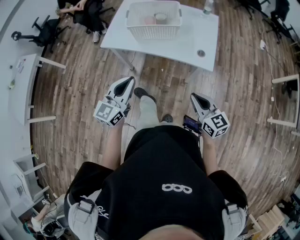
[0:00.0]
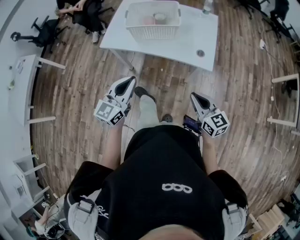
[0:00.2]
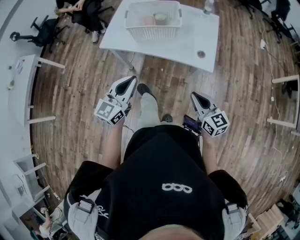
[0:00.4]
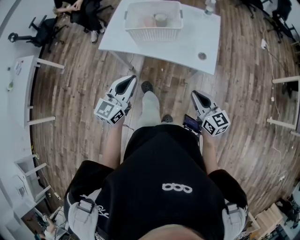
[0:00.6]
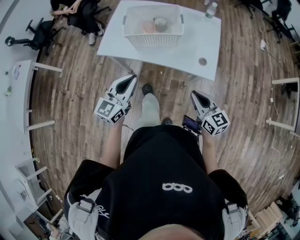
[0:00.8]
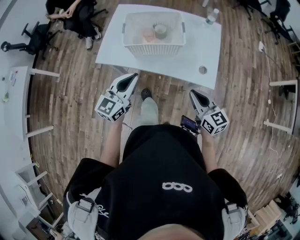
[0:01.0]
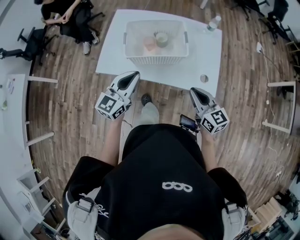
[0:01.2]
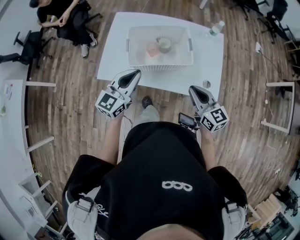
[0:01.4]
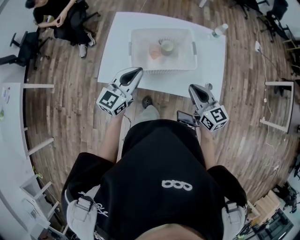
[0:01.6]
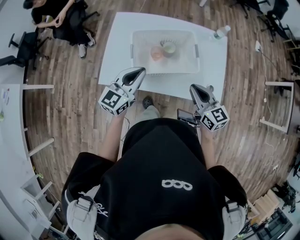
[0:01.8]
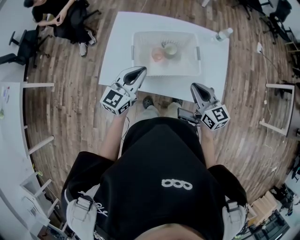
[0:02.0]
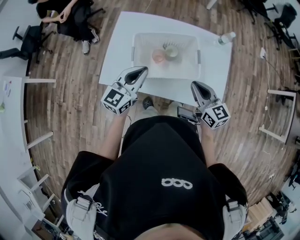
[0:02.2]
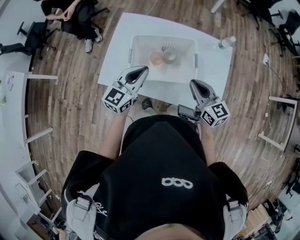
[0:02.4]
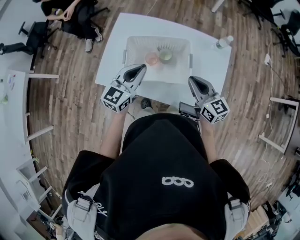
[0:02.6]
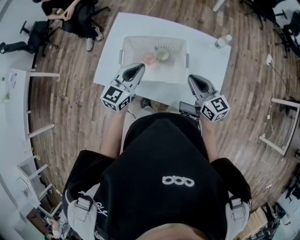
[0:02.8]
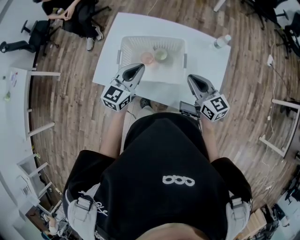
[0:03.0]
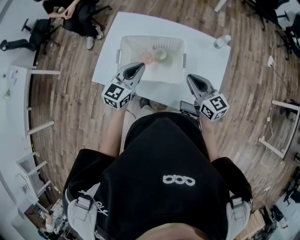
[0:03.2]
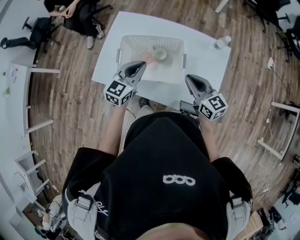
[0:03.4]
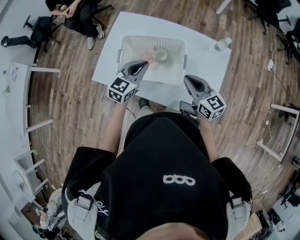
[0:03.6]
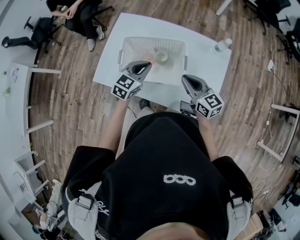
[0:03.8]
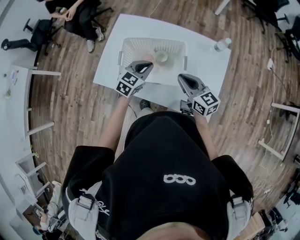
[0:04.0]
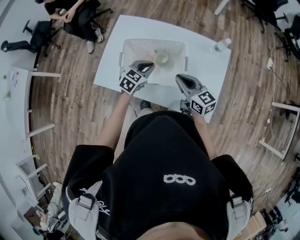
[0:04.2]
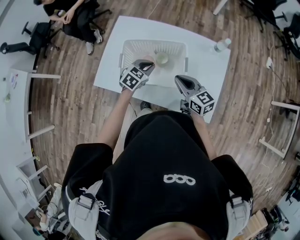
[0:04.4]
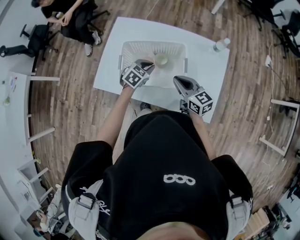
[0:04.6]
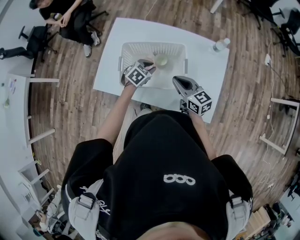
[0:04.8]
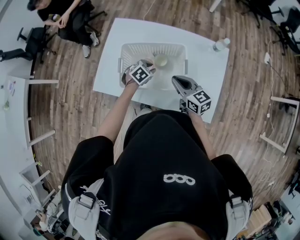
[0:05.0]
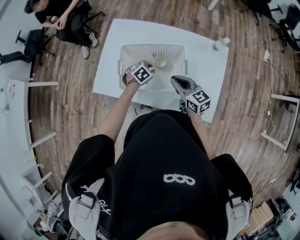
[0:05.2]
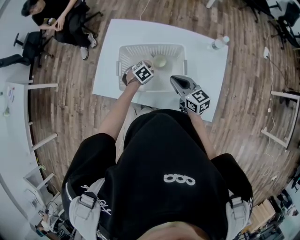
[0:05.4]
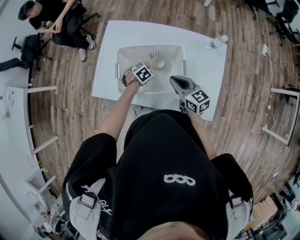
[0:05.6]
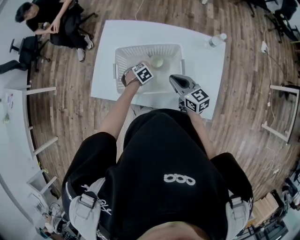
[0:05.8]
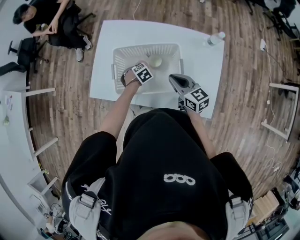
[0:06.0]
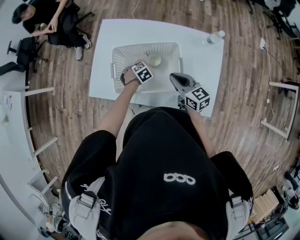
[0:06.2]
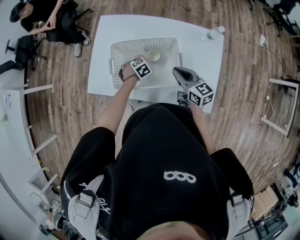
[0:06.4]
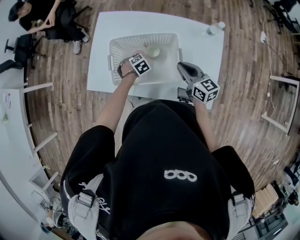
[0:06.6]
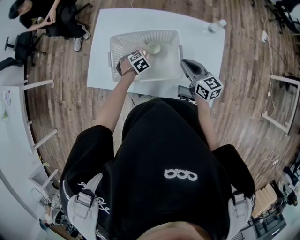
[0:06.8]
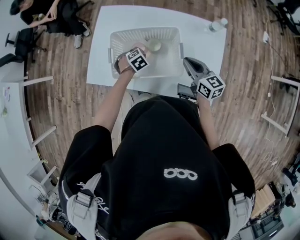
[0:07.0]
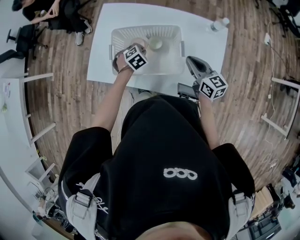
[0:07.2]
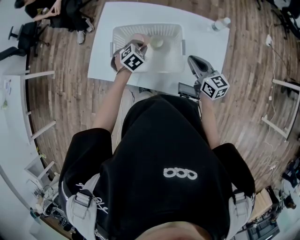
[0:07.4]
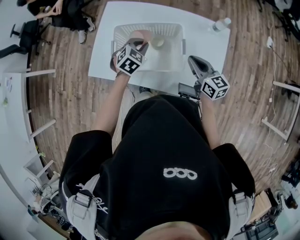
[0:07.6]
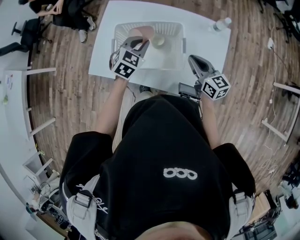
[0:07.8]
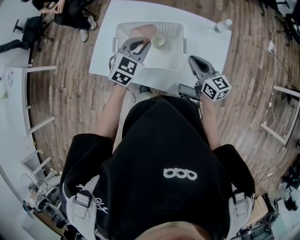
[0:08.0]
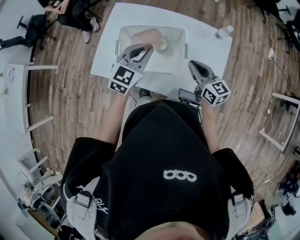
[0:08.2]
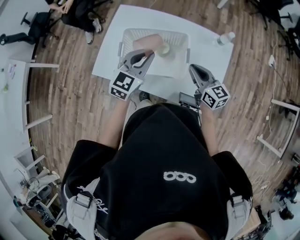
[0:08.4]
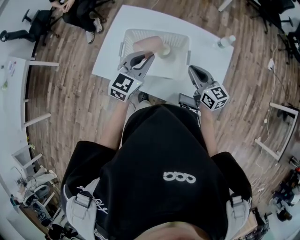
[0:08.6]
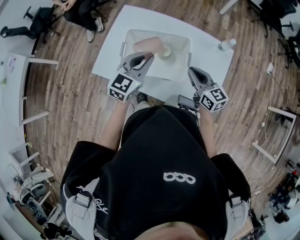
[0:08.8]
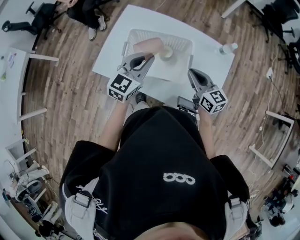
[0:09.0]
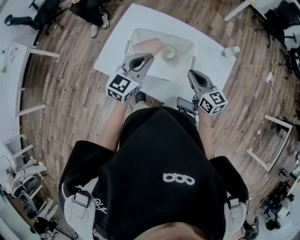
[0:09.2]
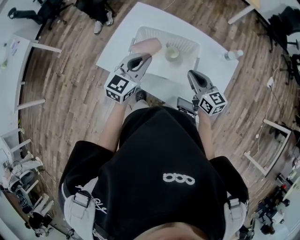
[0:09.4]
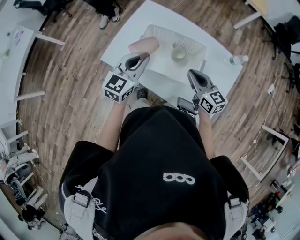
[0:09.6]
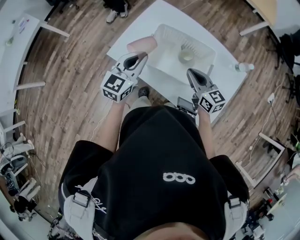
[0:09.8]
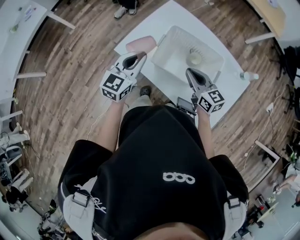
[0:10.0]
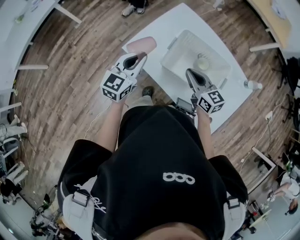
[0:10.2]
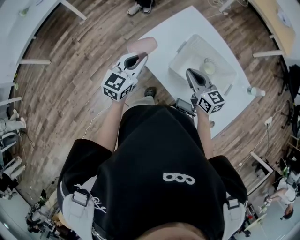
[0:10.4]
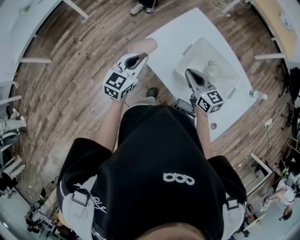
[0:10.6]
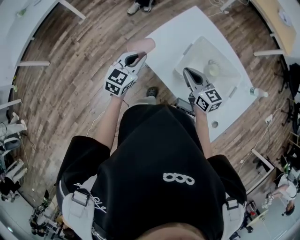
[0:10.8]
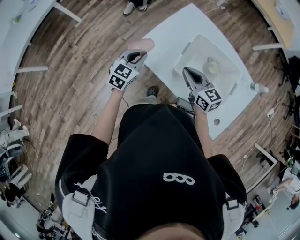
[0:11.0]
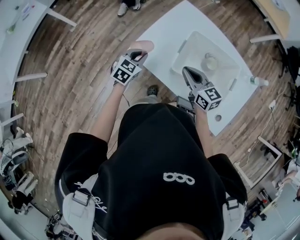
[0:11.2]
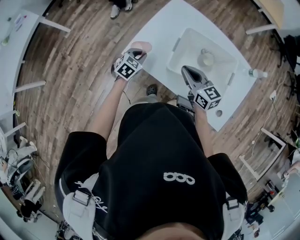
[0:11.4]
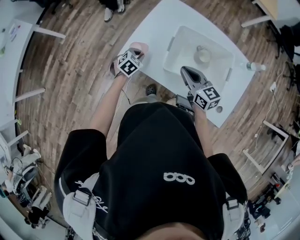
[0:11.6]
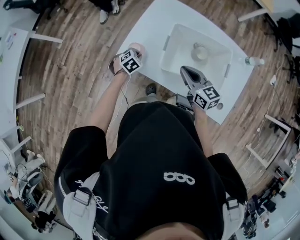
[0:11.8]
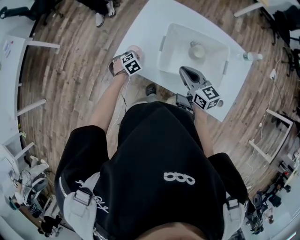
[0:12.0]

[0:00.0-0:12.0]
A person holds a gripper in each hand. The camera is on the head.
0:00.0 to 0:01.6: Both grippers move forward, roughly 35 cm.
0:01.6 to 0:03.0: The left gripper goes roughly 15 cm to the right and forward. The right gripper shifts about 15 cm forward and to the right.
0:03.0 to 0:04.4: The right gripper moves to the left, approximately 5 cm, while the left gripper is displaced downward by roughly 15 cm, and swivels roughly 30 degrees.
0:04.4 to 0:06.0: The left gripper is displaced downward by approximately 15 cm, and angles its fingers downward, by approximately 30 degrees.
0:06.0 to 0:07.6: The right gripper shifts by some 10 cm, while the left gripper goes about 20 cm upward, and turns by about 30 degrees.
0:07.6 to 0:09.0: The left gripper shifts approximately 15 cm upward and backward, and angles its fingers upward, by some 30 degrees.
0:09.0 to 0:10.4: The grippers both shift to the left by roughly 25 cm. The right gripper swivels some 20 degrees. The left gripper changes its angle by roughly 30 degrees.
0:10.4 to 0:12.0: The left gripper shifts approximately 30 cm downward, and points its fingers roughly 60 degrees further downward.

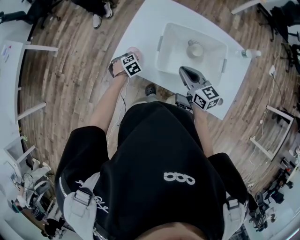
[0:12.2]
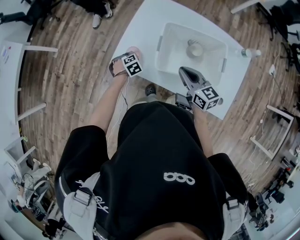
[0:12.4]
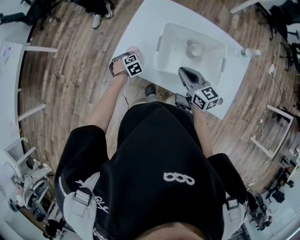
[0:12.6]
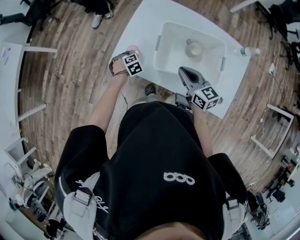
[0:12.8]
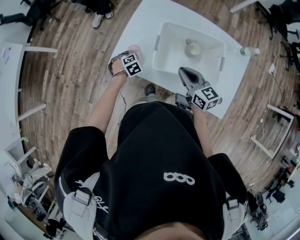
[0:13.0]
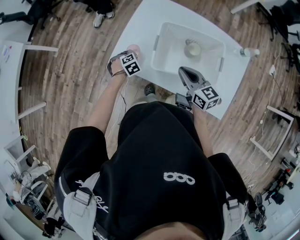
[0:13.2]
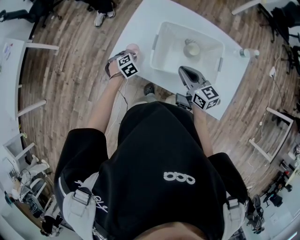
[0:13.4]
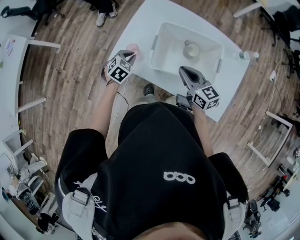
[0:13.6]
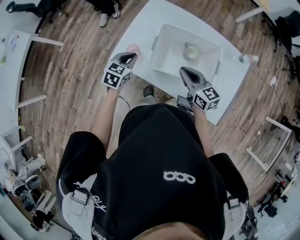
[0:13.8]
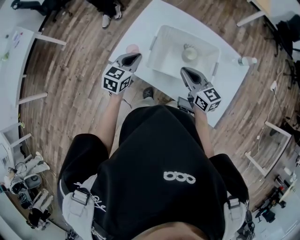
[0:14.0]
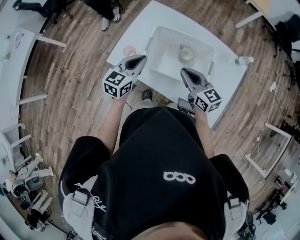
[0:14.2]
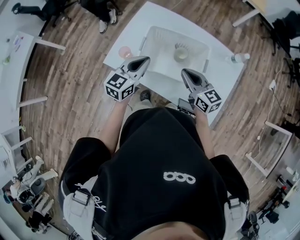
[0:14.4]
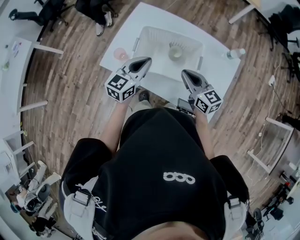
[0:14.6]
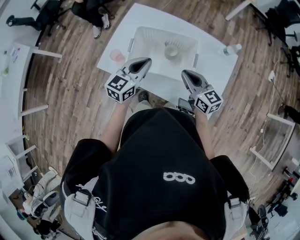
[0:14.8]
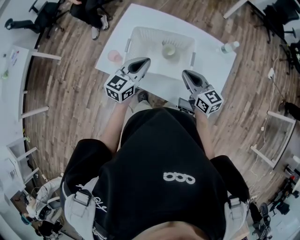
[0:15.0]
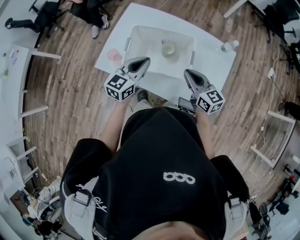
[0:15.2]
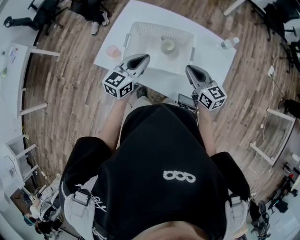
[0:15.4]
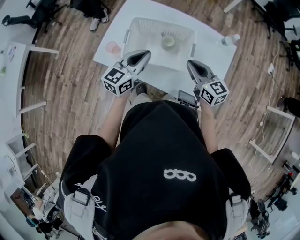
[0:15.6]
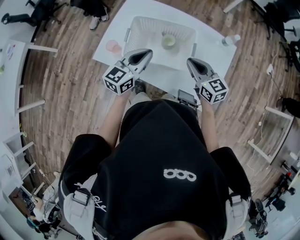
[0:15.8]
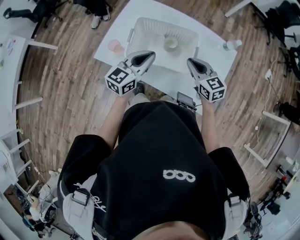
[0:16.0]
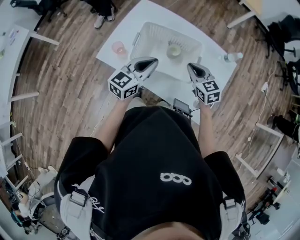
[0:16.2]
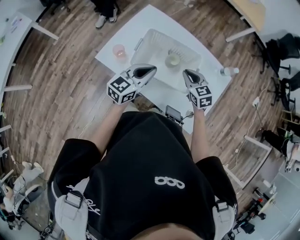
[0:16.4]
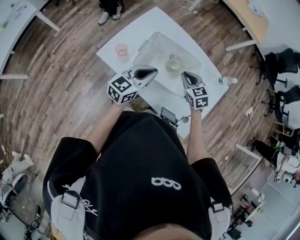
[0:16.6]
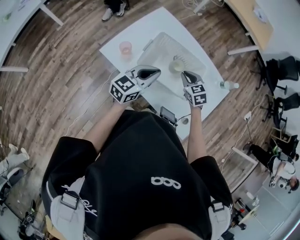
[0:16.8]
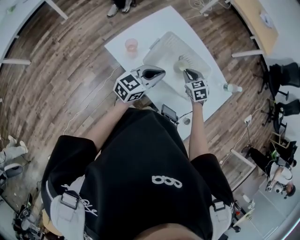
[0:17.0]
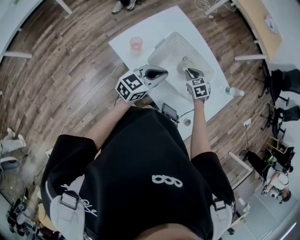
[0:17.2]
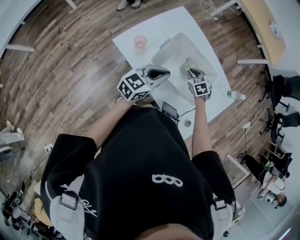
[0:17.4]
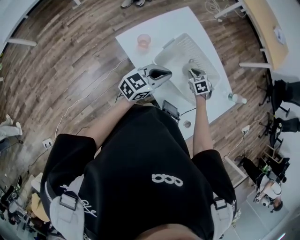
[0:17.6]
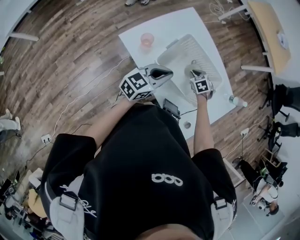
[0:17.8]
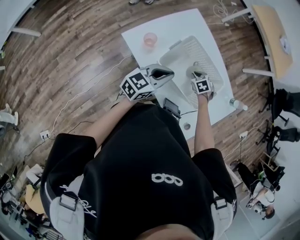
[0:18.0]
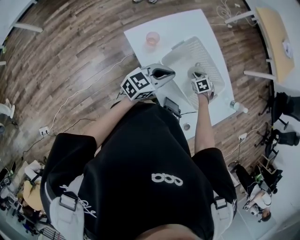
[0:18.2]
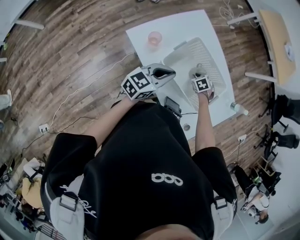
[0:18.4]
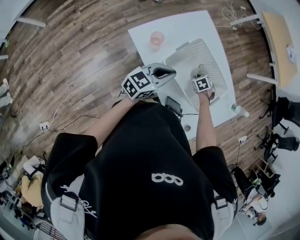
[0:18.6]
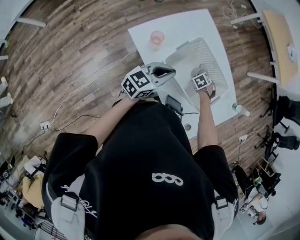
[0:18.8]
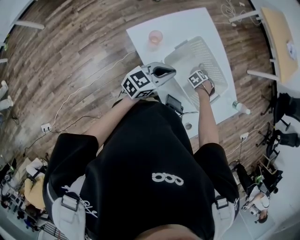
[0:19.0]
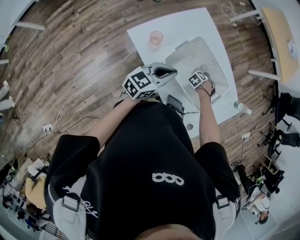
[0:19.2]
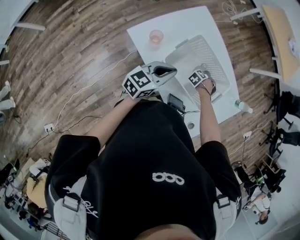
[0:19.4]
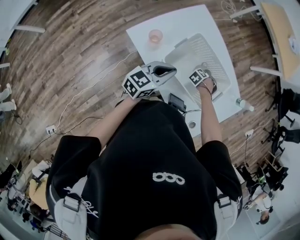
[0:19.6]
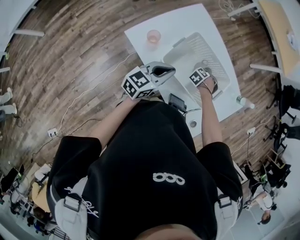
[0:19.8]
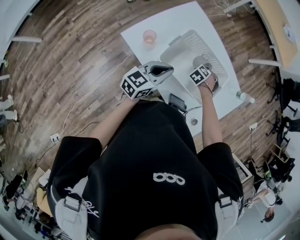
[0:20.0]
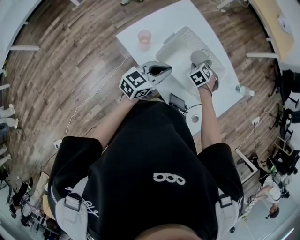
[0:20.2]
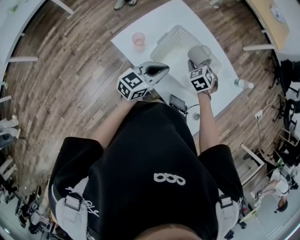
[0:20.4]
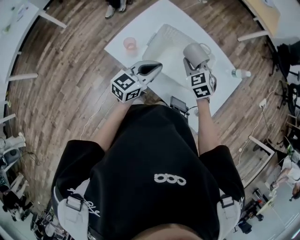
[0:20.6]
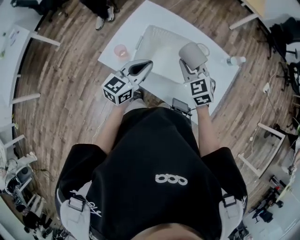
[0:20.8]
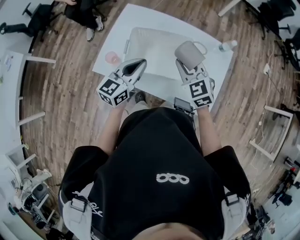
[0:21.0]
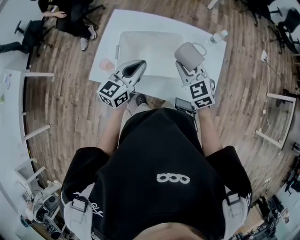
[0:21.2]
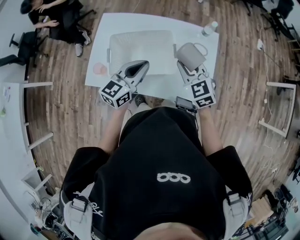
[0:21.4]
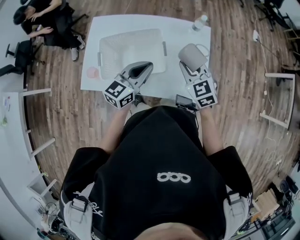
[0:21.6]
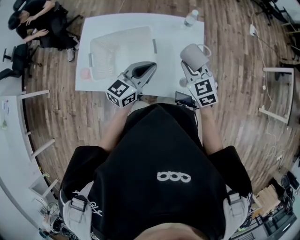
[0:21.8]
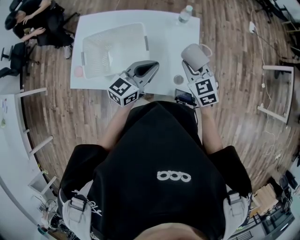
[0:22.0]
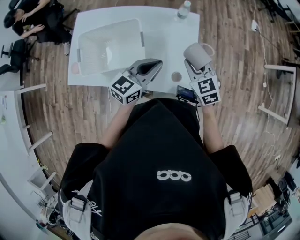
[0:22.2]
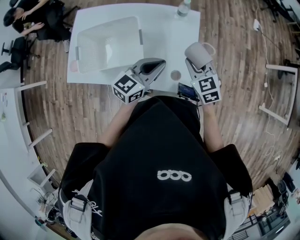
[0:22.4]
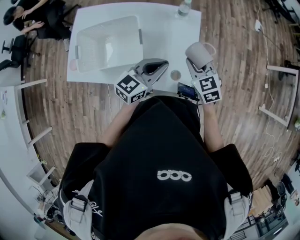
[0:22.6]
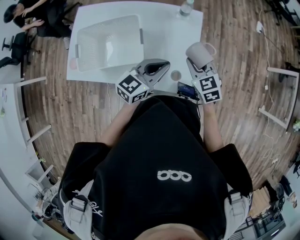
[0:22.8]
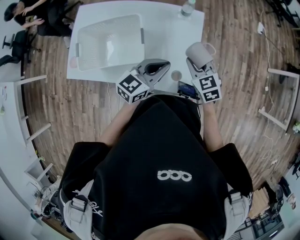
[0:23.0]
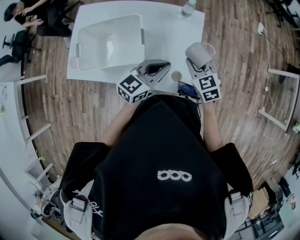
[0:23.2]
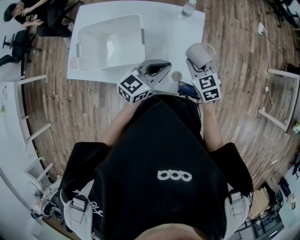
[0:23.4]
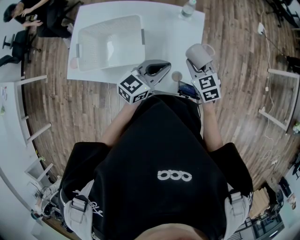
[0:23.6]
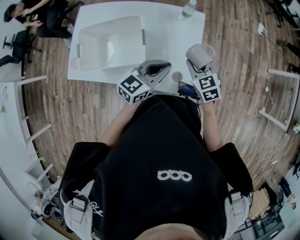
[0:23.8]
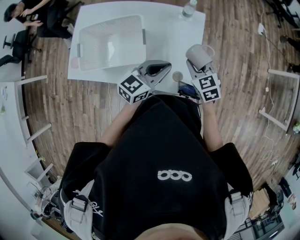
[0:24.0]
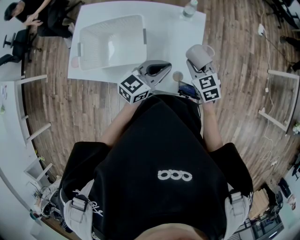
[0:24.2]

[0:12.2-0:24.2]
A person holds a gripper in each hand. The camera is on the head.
0:12.2 to 0:13.8: The right gripper shifts by roughly 5 cm. Meanwhile the left gripper shifts approximately 20 cm upward, and tips its fingers upward by some 30 degrees.
0:13.8 to 0:15.2: The left gripper shifts roughly 20 cm to the right and upward, and turns by roughly 30 degrees. The right gripper is displaced to the right by roughly 15 cm.
0:15.2 to 0:16.6: The right gripper goes some 10 cm forward, downward and to the left, and changes its angle by approximately 40 degrees.
0:16.6 to 0:18.2: The right gripper heads downward, covering roughly 20 cm, and tilts its fingers approximately 30 degrees downward. Meanwhile the left gripper shifts by some 5 cm.
0:18.2 to 0:19.8: The right gripper turns by approximately 30 degrees.
0:19.8 to 0:21.2: The left gripper ends up roughly 15 cm from where it was, and swivels some 20 degrees; the right gripper heads upward, covering approximately 30 cm, and tips its fingers upward by about 50 degrees.
0:21.2 to 0:22.6: Both grippers travel together to the right, about 30 cm.
0:22.6 to 0:24.2: The grippers make only small movements.
